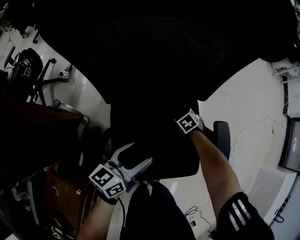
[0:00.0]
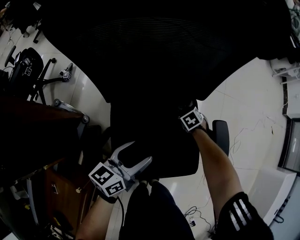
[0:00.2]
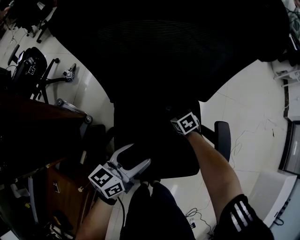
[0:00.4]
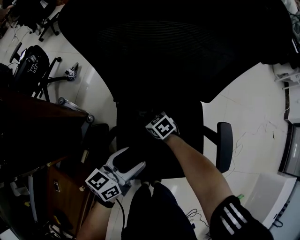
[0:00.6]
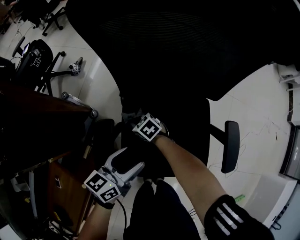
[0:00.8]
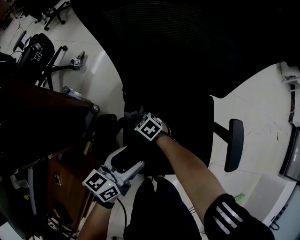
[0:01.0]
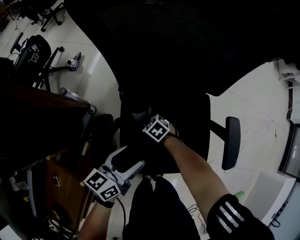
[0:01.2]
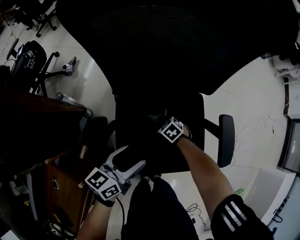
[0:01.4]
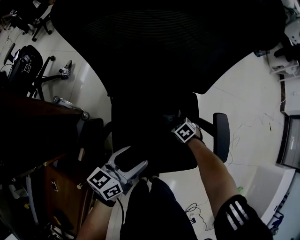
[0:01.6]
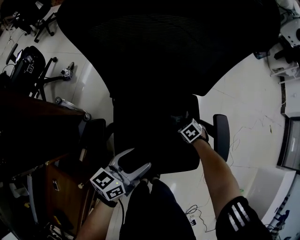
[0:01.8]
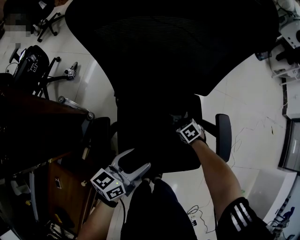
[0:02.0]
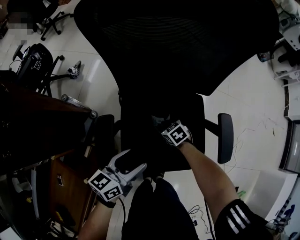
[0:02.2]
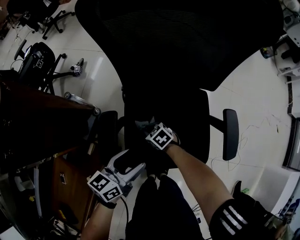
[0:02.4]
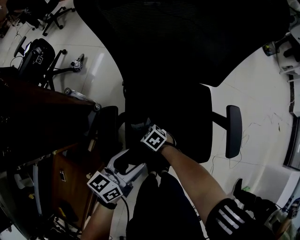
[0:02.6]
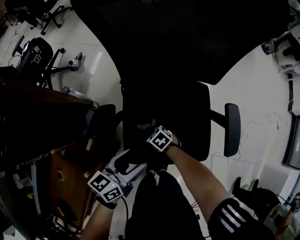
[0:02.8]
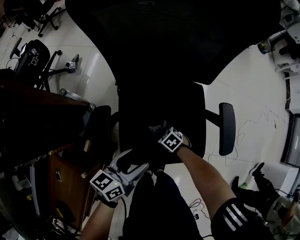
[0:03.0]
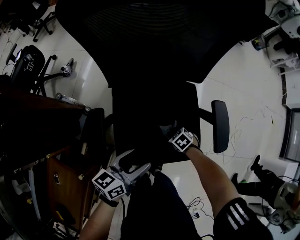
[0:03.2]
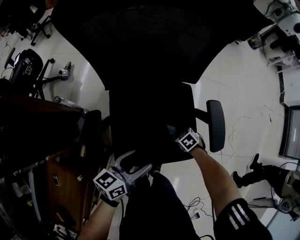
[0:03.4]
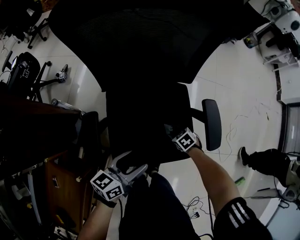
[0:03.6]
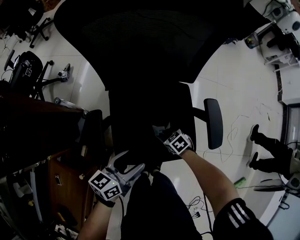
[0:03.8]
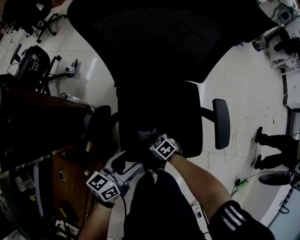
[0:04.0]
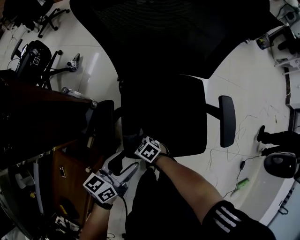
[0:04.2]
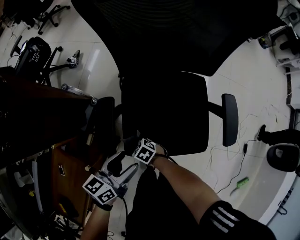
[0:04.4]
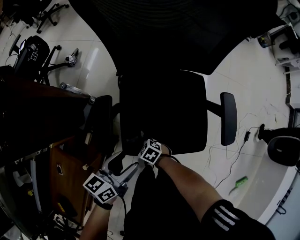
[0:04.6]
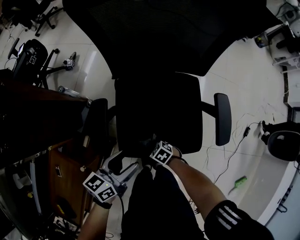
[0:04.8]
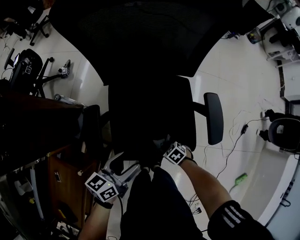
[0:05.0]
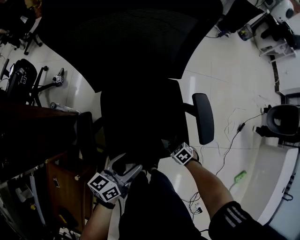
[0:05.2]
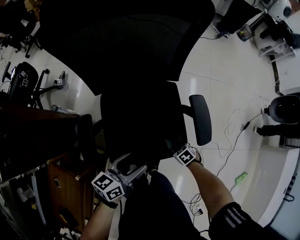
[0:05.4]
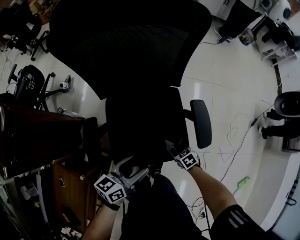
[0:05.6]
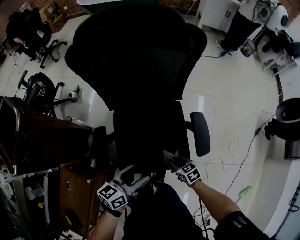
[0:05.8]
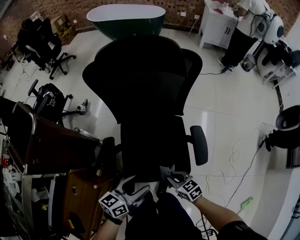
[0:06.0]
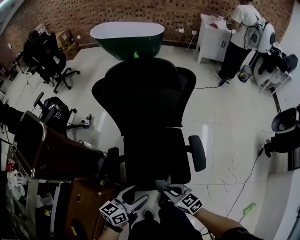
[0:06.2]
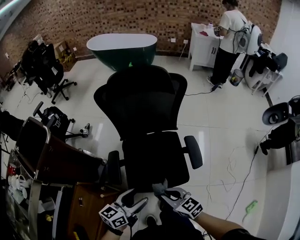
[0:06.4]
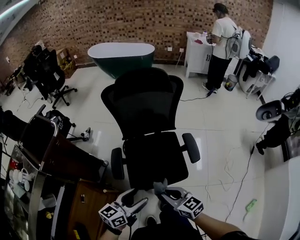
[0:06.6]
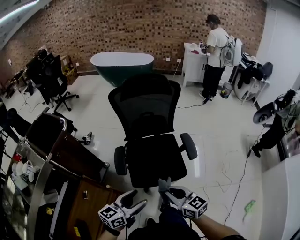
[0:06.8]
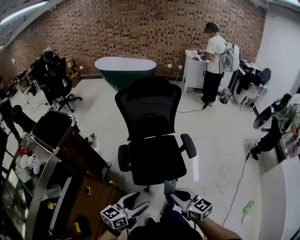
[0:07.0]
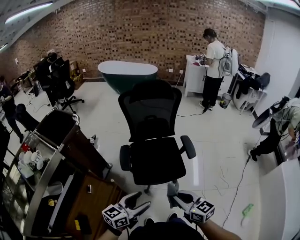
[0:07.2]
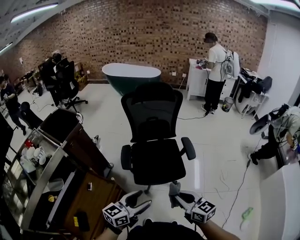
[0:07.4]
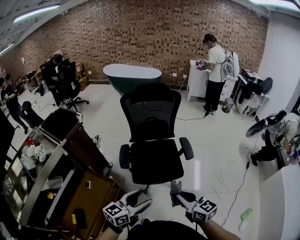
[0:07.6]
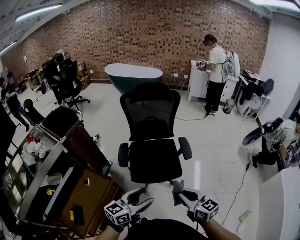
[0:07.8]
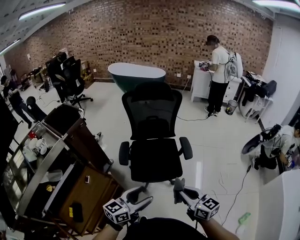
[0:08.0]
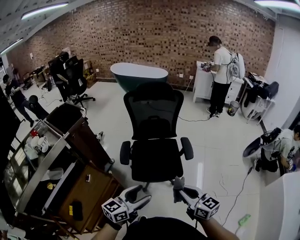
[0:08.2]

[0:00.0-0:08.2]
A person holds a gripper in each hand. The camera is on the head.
0:01.6 to 0:03.2: The left gripper ends up some 5 cm from where it was.
0:05.0 to 0:06.6: The right gripper is displaced upward by roughly 50 cm, and points its fingers some 50 degrees further upward. The left gripper moves upward, some 25 cm.
0:06.6 to 0:08.2: The right gripper heads backward, upward and to the right, covering roughly 25 cm; the left gripper heads backward and upward, covering approximately 20 cm.

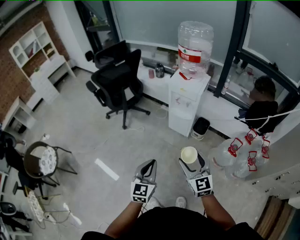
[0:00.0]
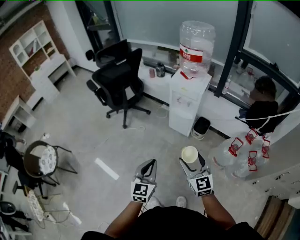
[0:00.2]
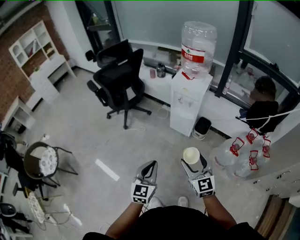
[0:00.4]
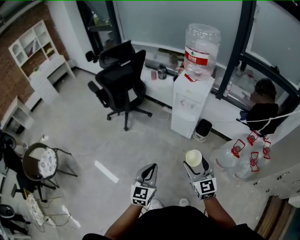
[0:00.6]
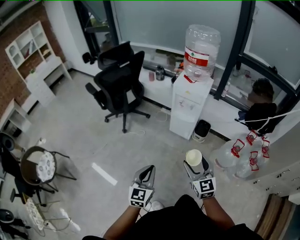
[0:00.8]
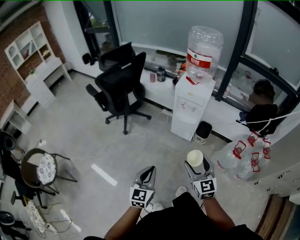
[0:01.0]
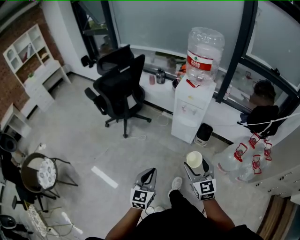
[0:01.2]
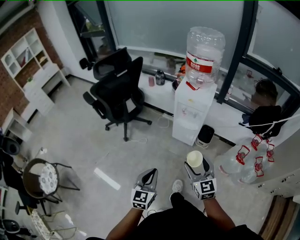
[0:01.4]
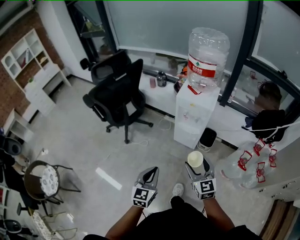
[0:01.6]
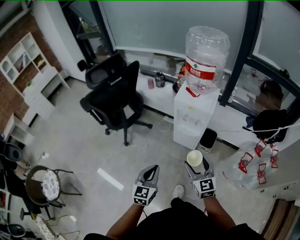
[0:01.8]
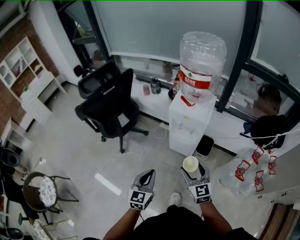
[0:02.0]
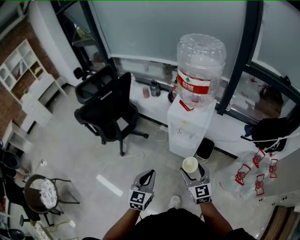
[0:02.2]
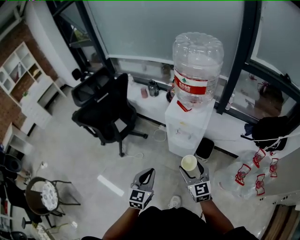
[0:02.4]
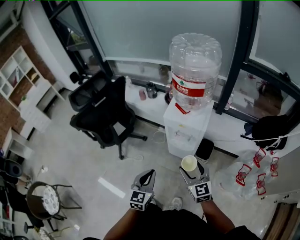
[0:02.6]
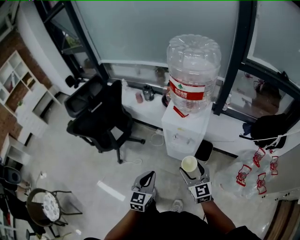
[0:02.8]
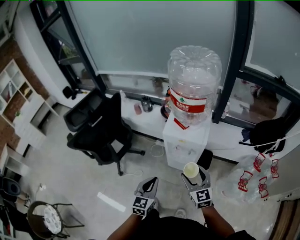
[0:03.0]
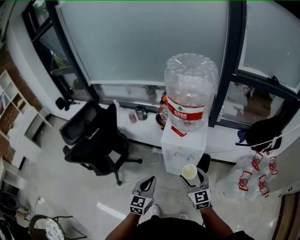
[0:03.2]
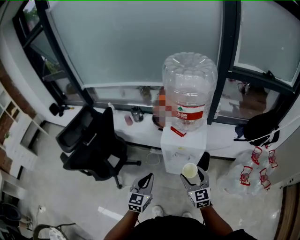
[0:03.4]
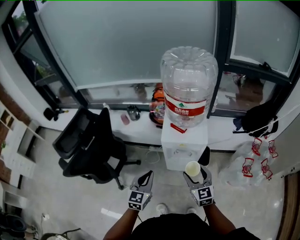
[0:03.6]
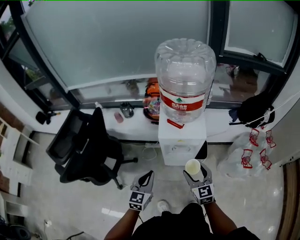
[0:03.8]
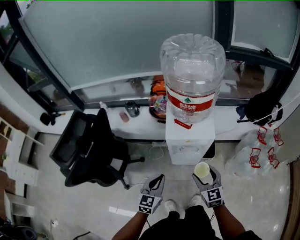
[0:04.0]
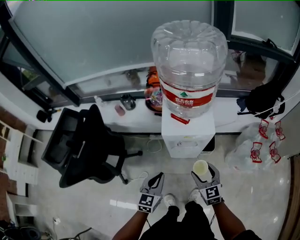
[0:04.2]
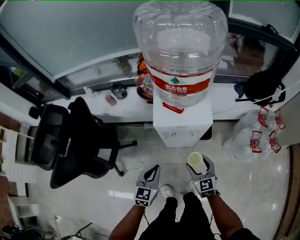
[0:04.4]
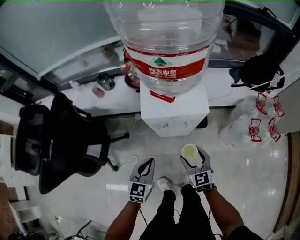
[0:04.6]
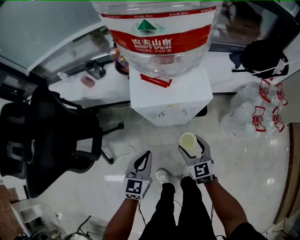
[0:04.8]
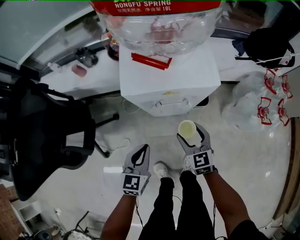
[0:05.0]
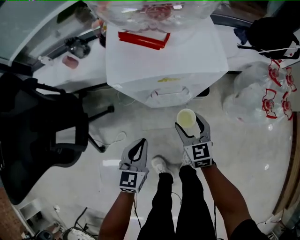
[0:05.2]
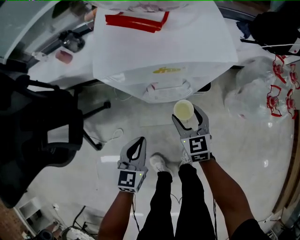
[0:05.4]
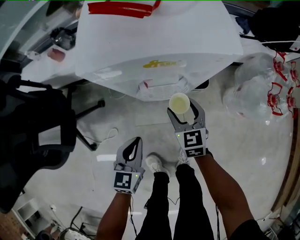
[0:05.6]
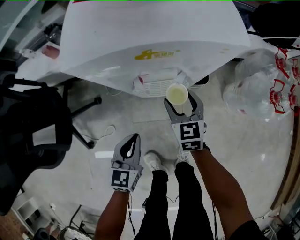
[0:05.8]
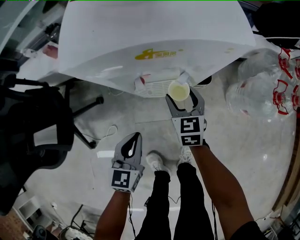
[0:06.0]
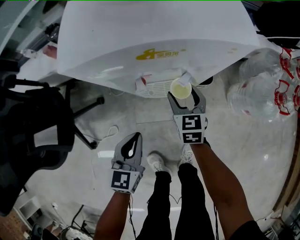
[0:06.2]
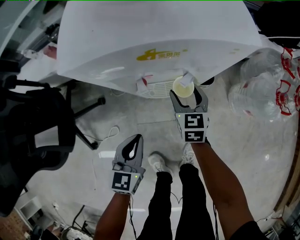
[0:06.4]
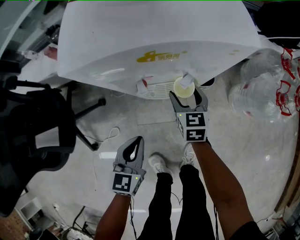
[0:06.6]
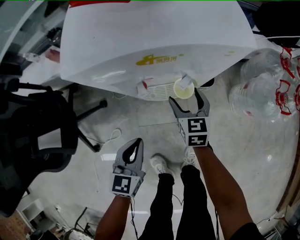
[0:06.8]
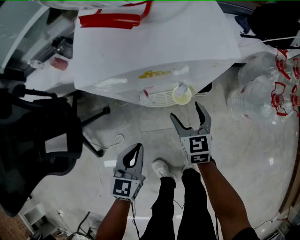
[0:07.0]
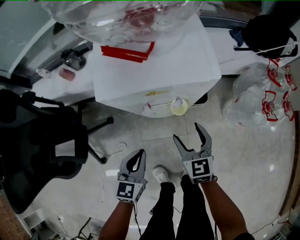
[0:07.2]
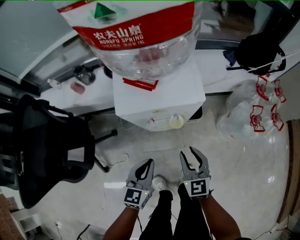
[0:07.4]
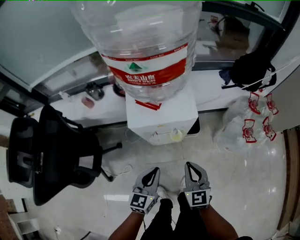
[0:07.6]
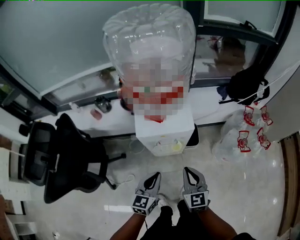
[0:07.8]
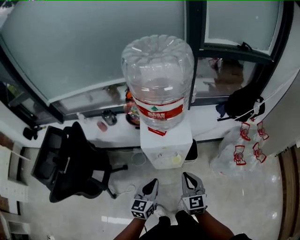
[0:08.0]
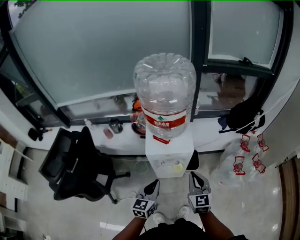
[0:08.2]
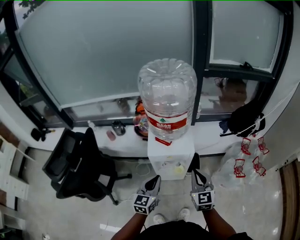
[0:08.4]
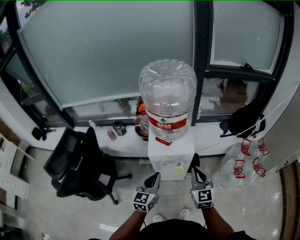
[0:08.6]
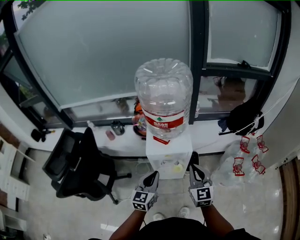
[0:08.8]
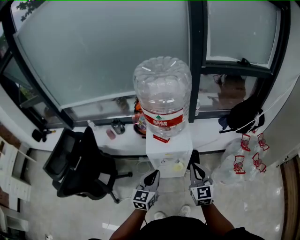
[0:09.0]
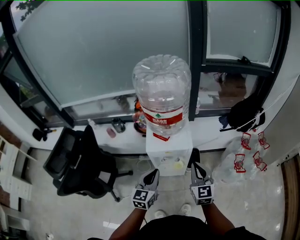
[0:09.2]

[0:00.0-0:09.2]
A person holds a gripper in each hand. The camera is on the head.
0:00.0 to 0:01.6: The left gripper is displaced forward and to the left by roughly 15 cm. The right gripper moves forward, about 15 cm.
0:01.6 to 0:03.0: The grippers both shift forward by some 20 cm.
0:03.0 to 0:04.6: The right gripper is displaced downward by about 20 cm, and turns by roughly 20 degrees. Meanwhile the left gripper shifts approximately 20 cm downward and forward, and rotates some 20 degrees.
0:04.6 to 0:06.2: The right gripper travels downward and forward by approximately 25 cm. Meanwhile the left gripper shifts about 20 cm downward.
0:06.2 to 0:07.6: The left gripper is displaced upward by some 20 cm, while the right gripper goes roughly 30 cm upward and backward, and closes its fingers.
0:07.6 to 0:09.2: Both grippers travel together upward, some 15 cm.

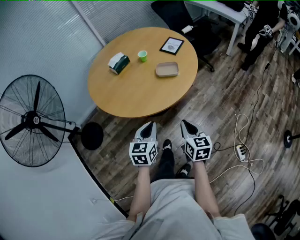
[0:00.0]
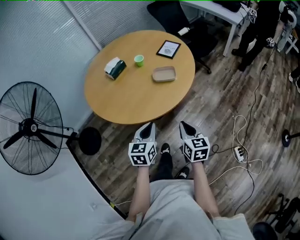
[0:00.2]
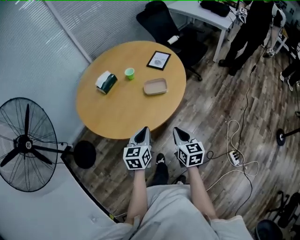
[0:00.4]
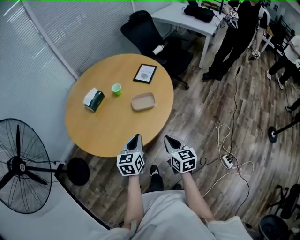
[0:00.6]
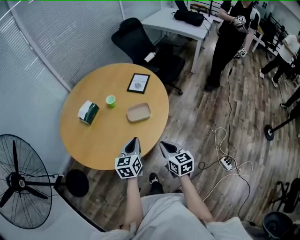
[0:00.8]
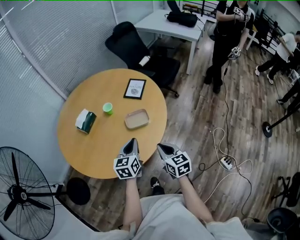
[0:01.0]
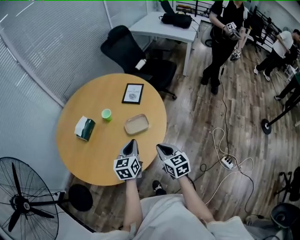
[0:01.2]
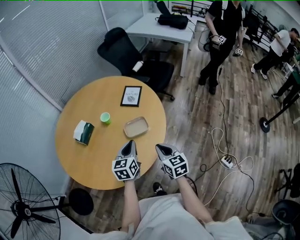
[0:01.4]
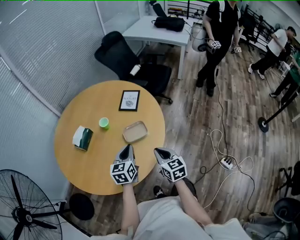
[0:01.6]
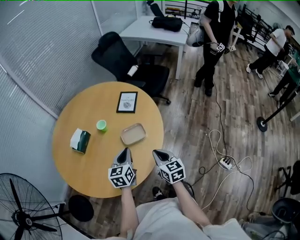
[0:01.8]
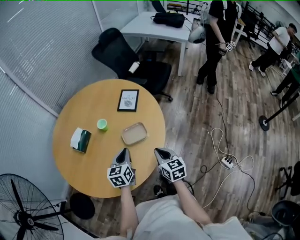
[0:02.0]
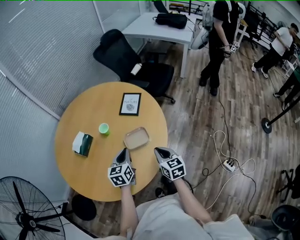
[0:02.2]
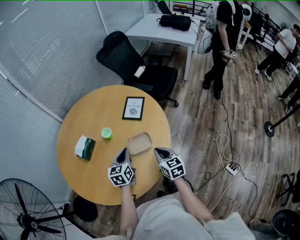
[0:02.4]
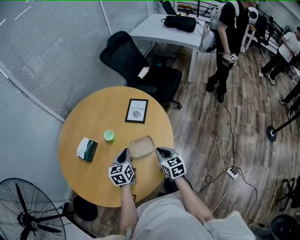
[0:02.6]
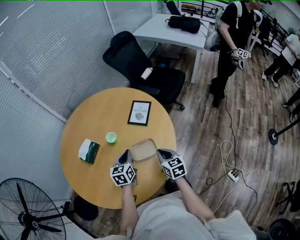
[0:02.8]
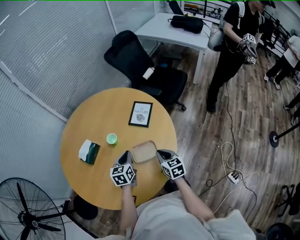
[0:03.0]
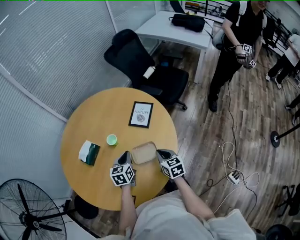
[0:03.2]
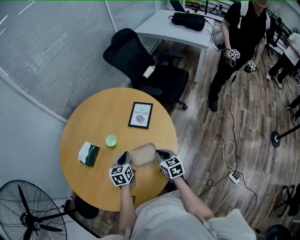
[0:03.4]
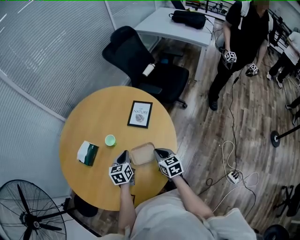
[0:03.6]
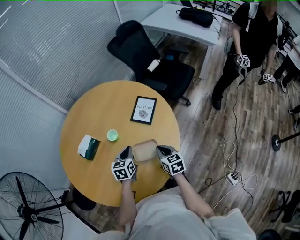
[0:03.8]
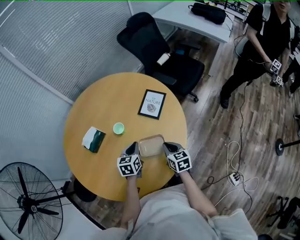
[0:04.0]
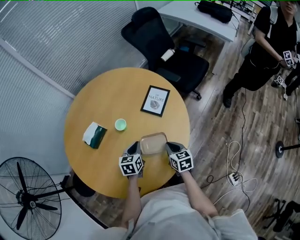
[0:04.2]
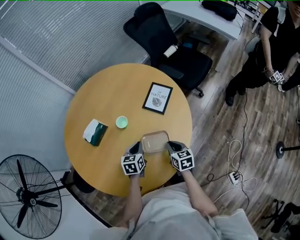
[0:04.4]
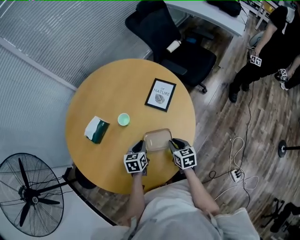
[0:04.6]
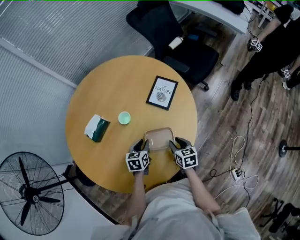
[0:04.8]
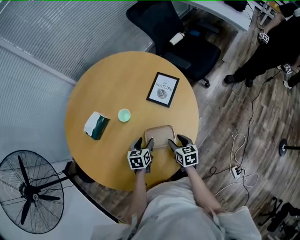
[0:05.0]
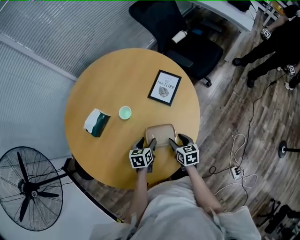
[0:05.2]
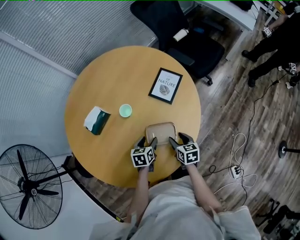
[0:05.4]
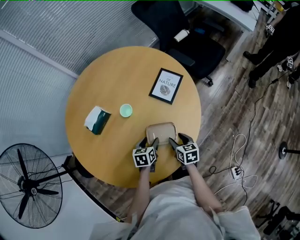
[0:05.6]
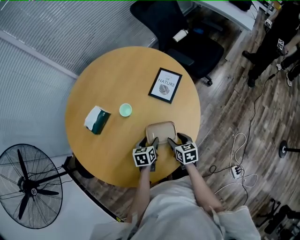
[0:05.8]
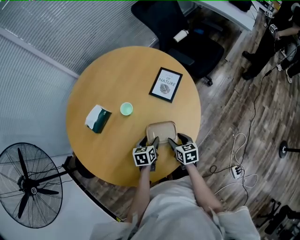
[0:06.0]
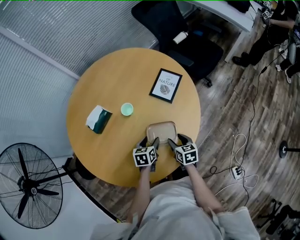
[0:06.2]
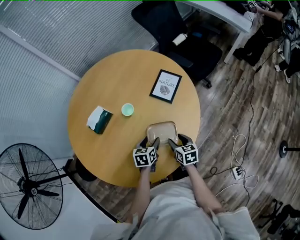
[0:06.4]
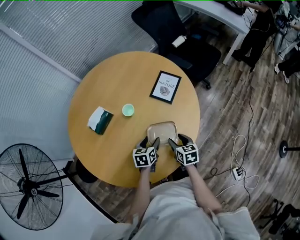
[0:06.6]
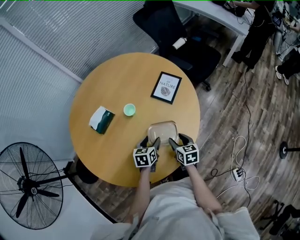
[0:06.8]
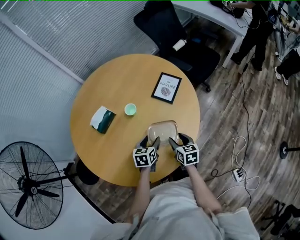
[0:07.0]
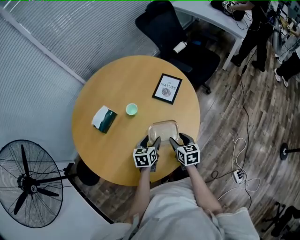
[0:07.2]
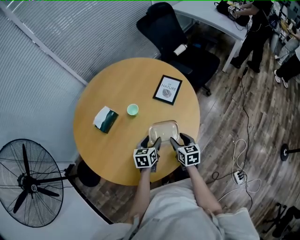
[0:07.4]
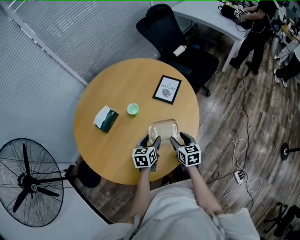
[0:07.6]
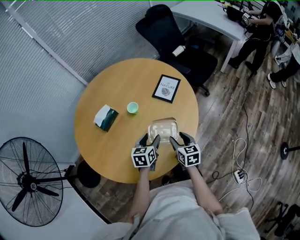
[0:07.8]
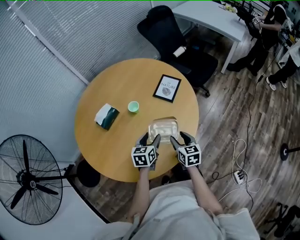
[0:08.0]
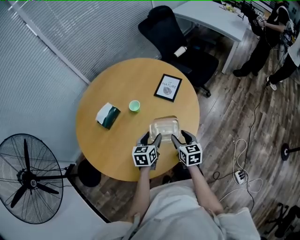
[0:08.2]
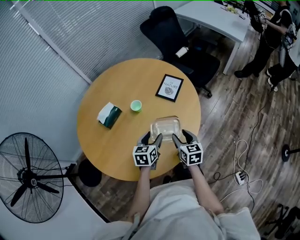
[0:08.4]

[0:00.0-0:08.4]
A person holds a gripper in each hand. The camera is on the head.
0:00.0 to 0:01.4: Both grippers travel together forward, about 25 cm.
0:01.4 to 0:02.8: Both grippers travel together forward, roughly 15 cm.
0:02.8 to 0:04.2: The grippers both shift downward by some 5 cm.
0:04.2 to 0:05.6: Both grippers move downward, some 10 cm. The left gripper opens its fingers, while the right gripper opens up.
0:05.6 to 0:07.0: Both grippers travel together upward, about 5 cm.
0:07.0 to 0:08.4: The two grippers go roughly 5 cm upward.
